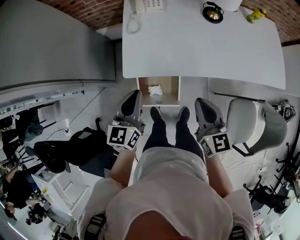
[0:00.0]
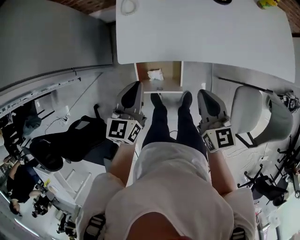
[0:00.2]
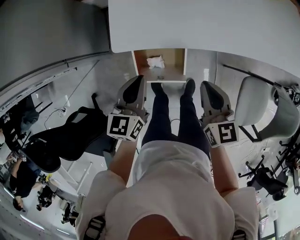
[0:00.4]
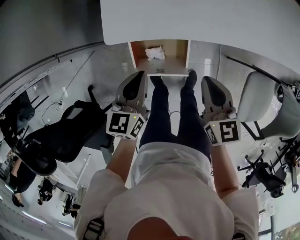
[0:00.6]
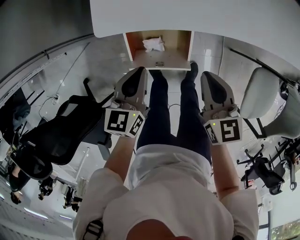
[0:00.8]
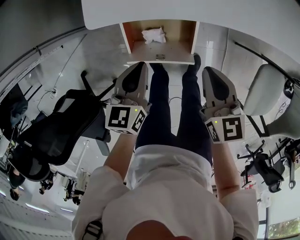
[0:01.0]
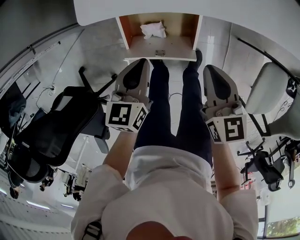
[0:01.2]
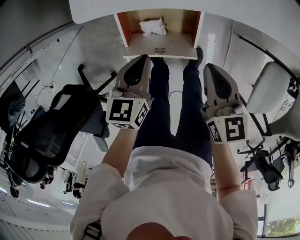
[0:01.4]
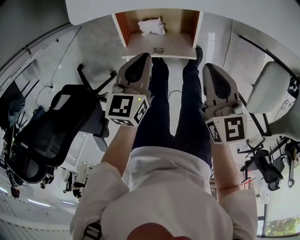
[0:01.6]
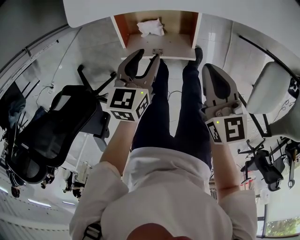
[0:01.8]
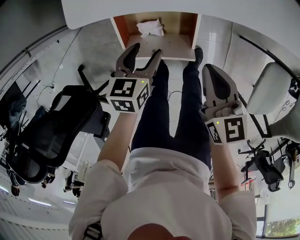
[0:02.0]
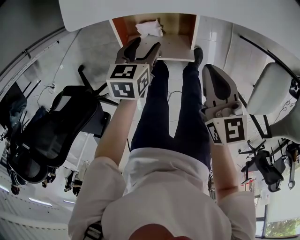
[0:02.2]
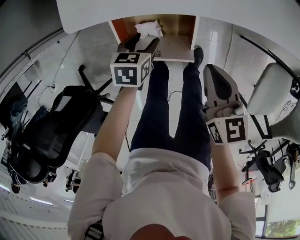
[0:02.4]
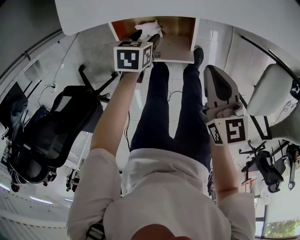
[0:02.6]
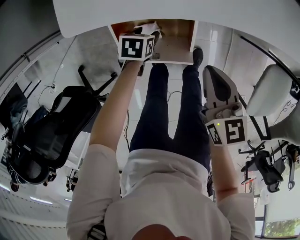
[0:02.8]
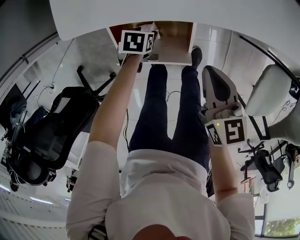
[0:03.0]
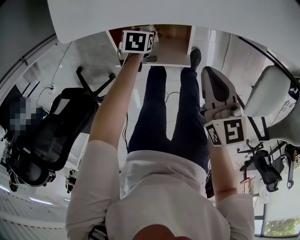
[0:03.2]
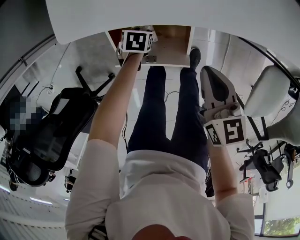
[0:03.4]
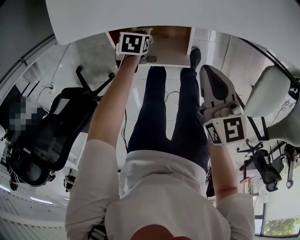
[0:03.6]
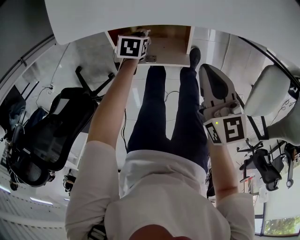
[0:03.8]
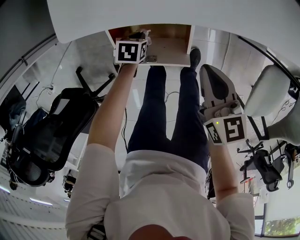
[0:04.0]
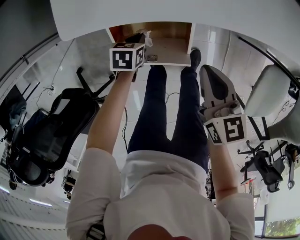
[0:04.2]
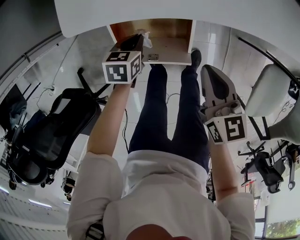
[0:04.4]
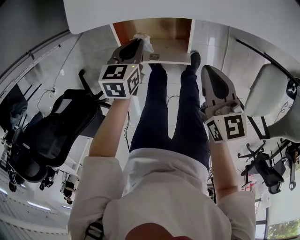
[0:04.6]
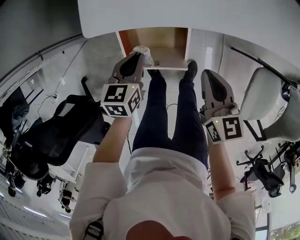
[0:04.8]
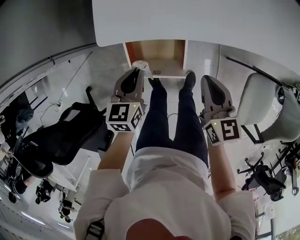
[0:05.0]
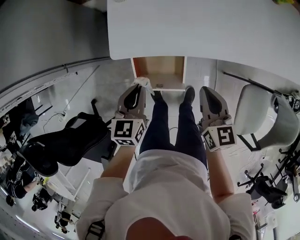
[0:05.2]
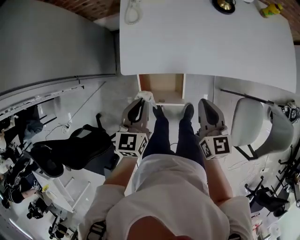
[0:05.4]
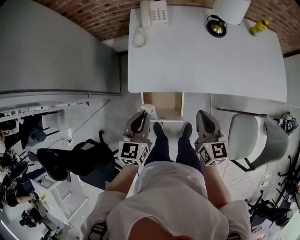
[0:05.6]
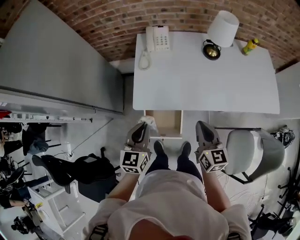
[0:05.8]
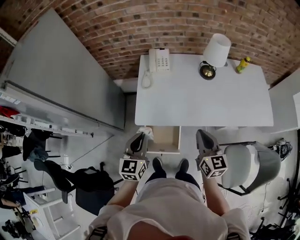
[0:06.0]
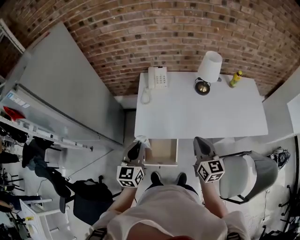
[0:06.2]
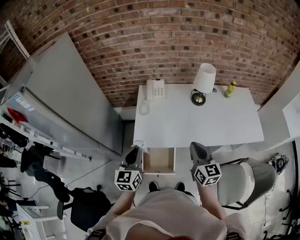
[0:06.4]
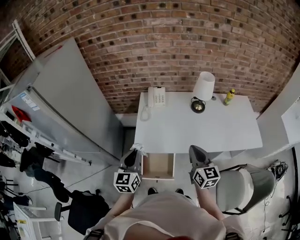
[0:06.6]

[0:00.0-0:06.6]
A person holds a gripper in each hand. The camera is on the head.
0:00.0 to 0:01.6: Both grippers move downward, some 30 cm. The left gripper rotates approximately 30 degrees.
0:01.6 to 0:03.2: The left gripper moves downward, roughly 25 cm, angles its fingers downward, by some 30 degrees, and opens its fingers.
0:03.2 to 0:05.0: The left gripper is displaced upward by roughly 30 cm, angles its fingers upward, by roughly 40 degrees, and closes; the right gripper travels upward by some 10 cm.
0:05.0 to 0:06.6: Both grippers travel together upward, approximately 35 cm. The right gripper swivels about 20 degrees. The left gripper angles its fingers upward, by roughly 30 degrees.

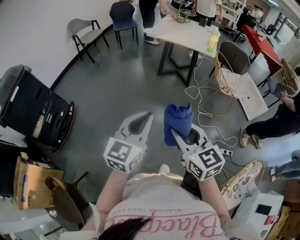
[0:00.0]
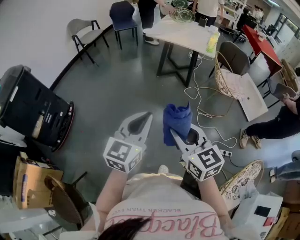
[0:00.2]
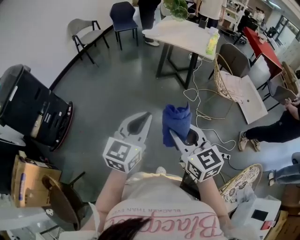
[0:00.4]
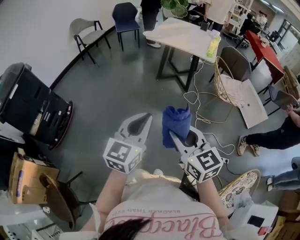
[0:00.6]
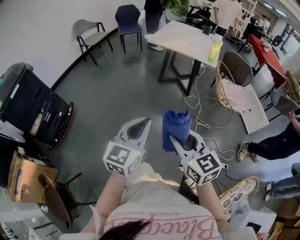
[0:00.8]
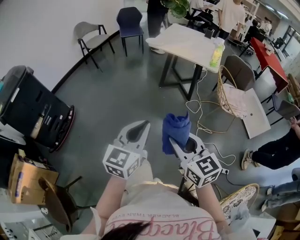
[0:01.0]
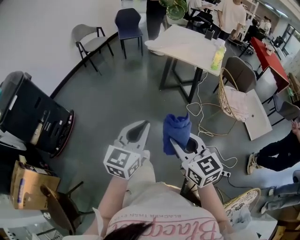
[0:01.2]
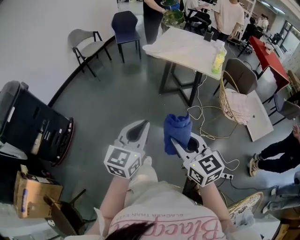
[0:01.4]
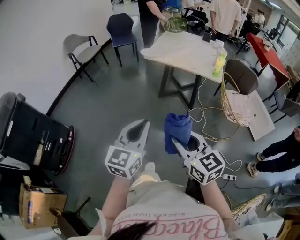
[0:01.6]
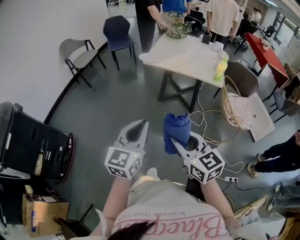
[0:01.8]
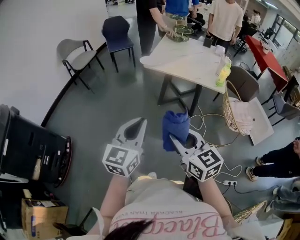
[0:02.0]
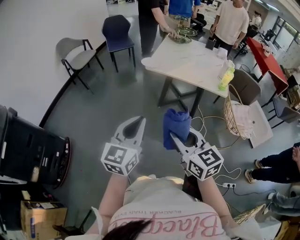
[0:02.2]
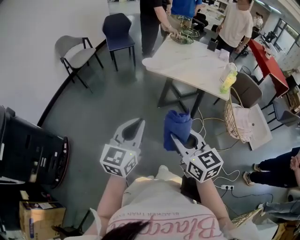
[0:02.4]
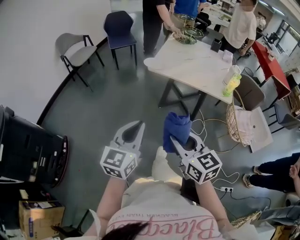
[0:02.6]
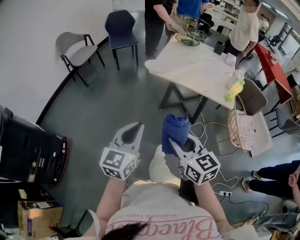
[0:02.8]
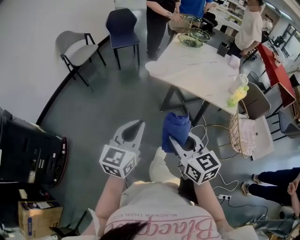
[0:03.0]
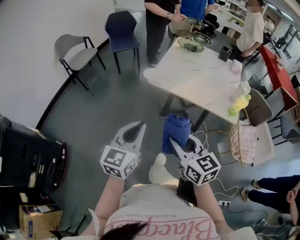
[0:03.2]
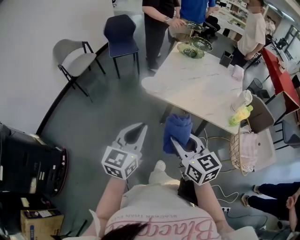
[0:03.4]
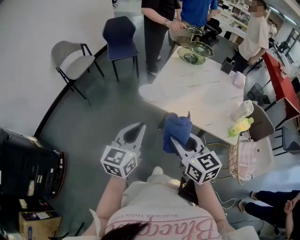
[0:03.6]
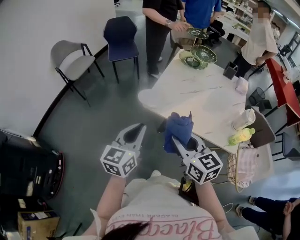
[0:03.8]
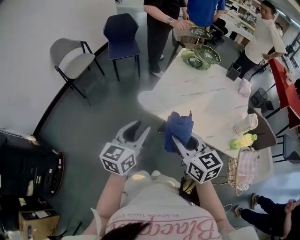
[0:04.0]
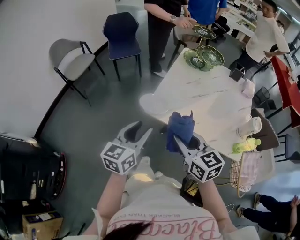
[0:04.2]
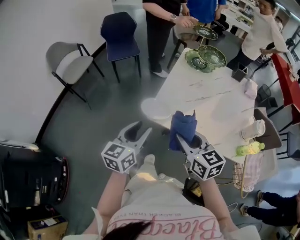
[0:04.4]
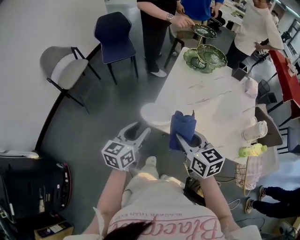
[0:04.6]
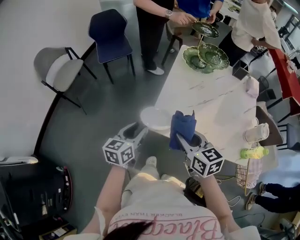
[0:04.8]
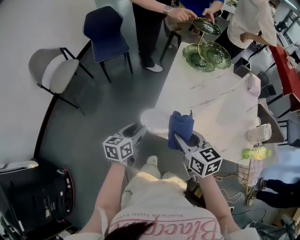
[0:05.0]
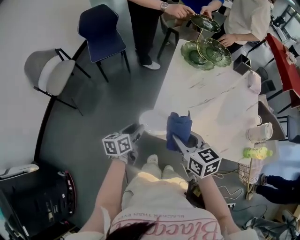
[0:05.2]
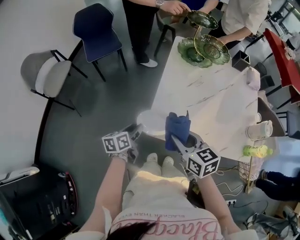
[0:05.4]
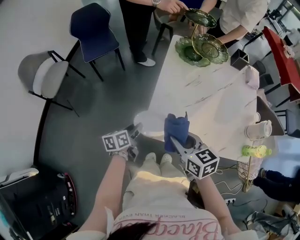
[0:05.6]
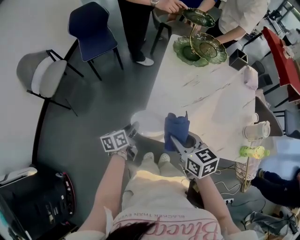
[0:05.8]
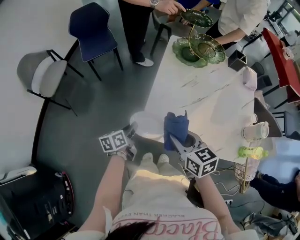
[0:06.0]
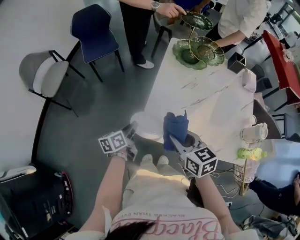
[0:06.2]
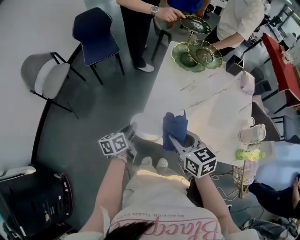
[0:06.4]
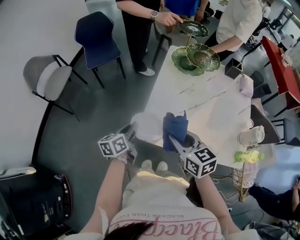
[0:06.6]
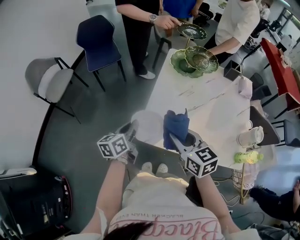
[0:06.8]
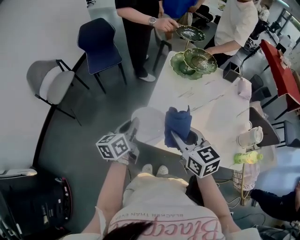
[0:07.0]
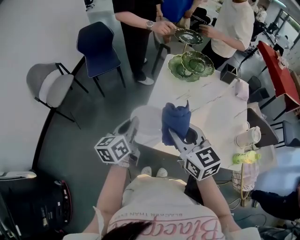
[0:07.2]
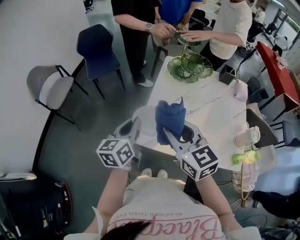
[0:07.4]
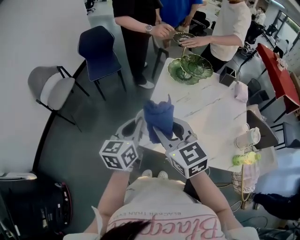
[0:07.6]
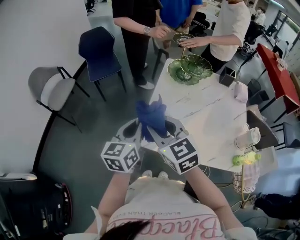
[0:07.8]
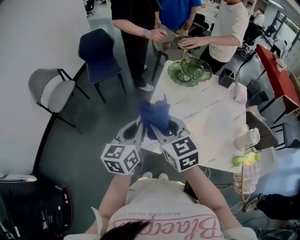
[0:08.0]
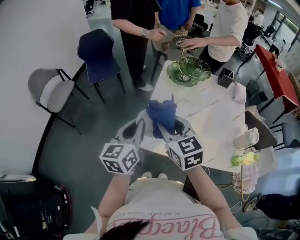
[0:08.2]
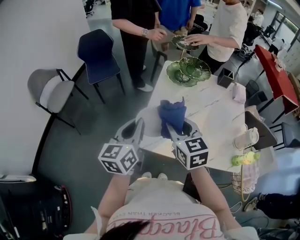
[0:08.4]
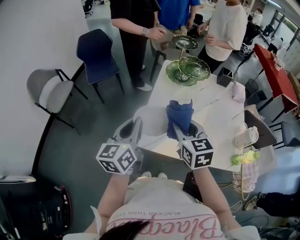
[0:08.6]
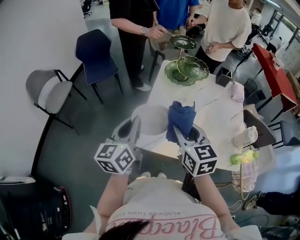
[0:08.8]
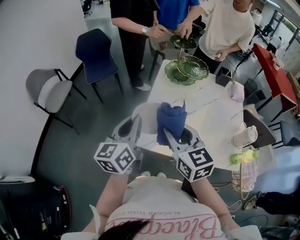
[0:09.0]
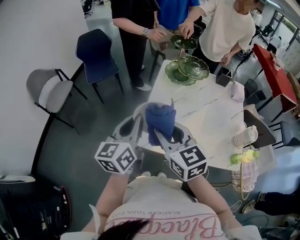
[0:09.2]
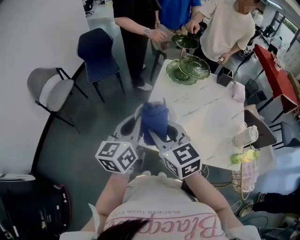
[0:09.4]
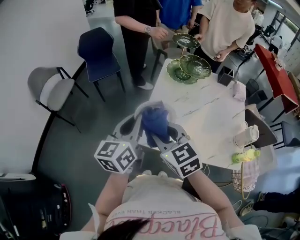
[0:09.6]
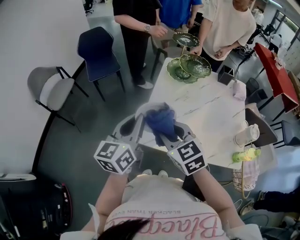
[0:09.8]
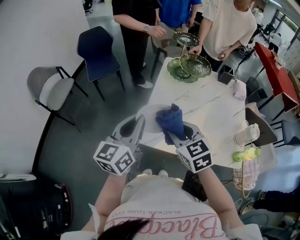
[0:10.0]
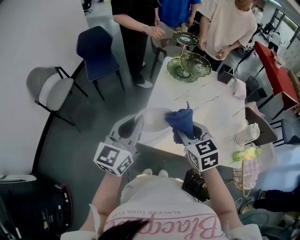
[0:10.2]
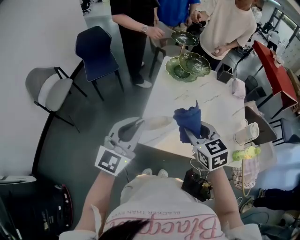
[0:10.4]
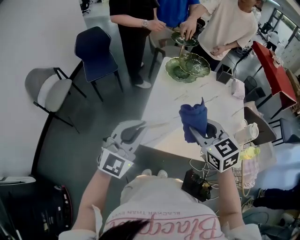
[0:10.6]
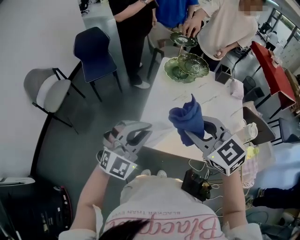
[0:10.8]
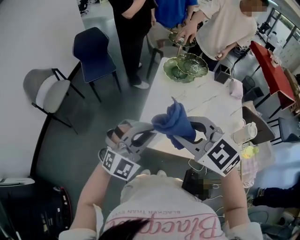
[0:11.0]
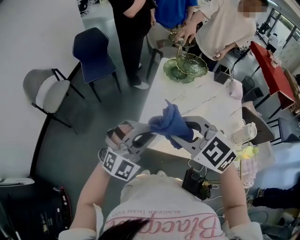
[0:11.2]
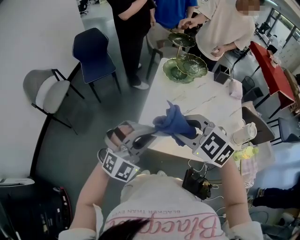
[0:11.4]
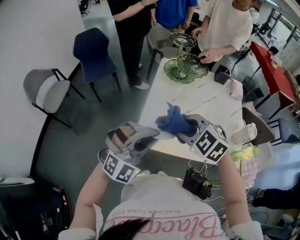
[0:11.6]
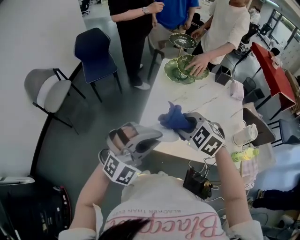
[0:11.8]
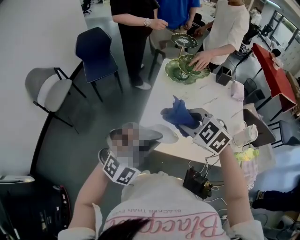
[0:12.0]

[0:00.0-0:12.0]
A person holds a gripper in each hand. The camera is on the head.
0:00.0 to 0:01.6: Both grippers travel together forward, roughly 25 cm.
0:01.6 to 0:03.0: Both grippers travel together forward, some 30 cm.
0:03.0 to 0:04.4: Both grippers move forward, roughly 35 cm. The left gripper opens its fingers.
0:04.4 to 0:06.0: The right gripper heads forward and downward, covering some 15 cm. The left gripper shifts about 25 cm downward and forward, turns by about 40 degrees, and closes its fingers.
0:06.0 to 0:07.6: The left gripper heads upward, covering roughly 25 cm, and swivels roughly 30 degrees; the right gripper moves upward, roughly 15 cm, and swivels approximately 30 degrees.
0:09.0 to 0:10.4: The right gripper shifts roughly 10 cm to the right and downward, while the left gripper turns by about 40 degrees.
0:10.4 to 0:12.0: The right gripper reaches roughly 10 cm upward, then returns, and rotates approximately 40 degrees; the left gripper heads to the right, covering approximately 5 cm, and rolls clockwise, seen from behind, by some 50 degrees.

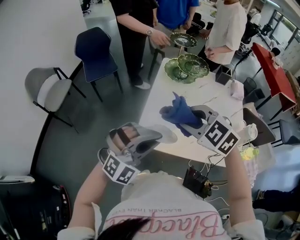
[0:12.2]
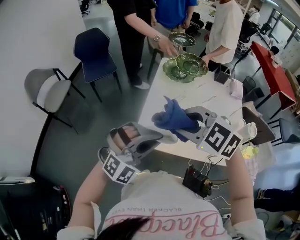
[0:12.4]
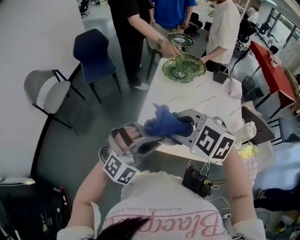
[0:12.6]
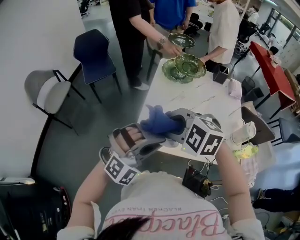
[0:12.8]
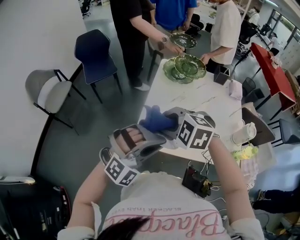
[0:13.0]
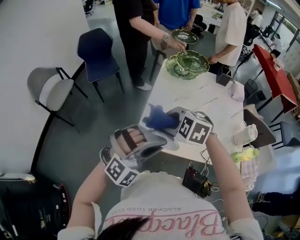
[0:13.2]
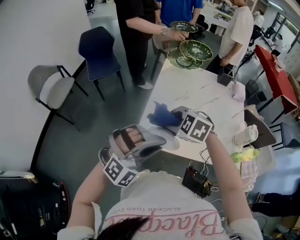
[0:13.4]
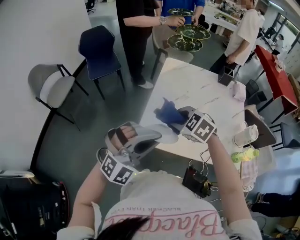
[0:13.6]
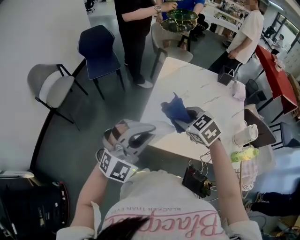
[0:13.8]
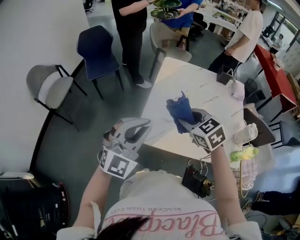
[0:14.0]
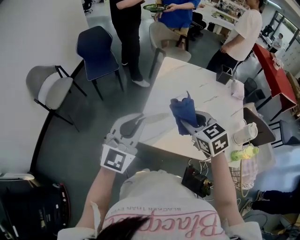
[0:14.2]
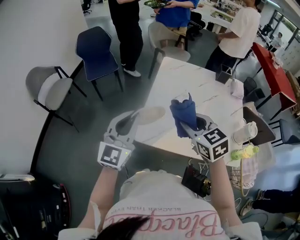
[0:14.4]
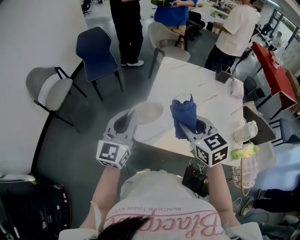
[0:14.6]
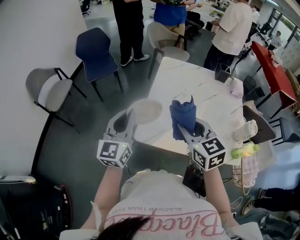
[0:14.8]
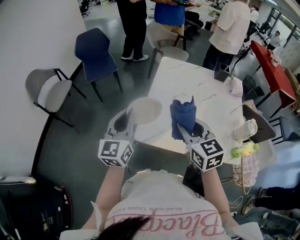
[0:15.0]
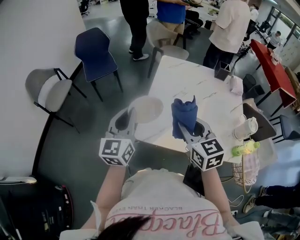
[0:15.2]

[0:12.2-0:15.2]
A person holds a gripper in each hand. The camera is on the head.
0:12.2 to 0:13.8: The right gripper travels downward by approximately 10 cm.
0:13.8 to 0:15.2: The left gripper goes about 10 cm forward and to the left, and twists about 60 degrees counterclockwise, seen from behind; the right gripper shifts roughly 10 cm upward and backward, and turns by about 40 degrees.

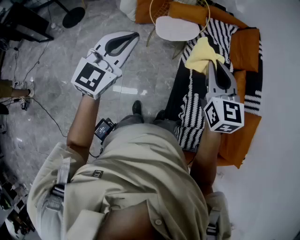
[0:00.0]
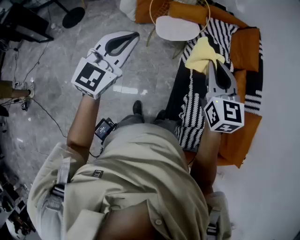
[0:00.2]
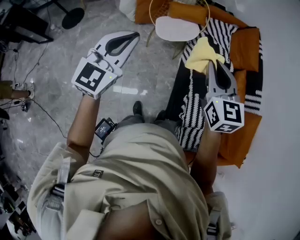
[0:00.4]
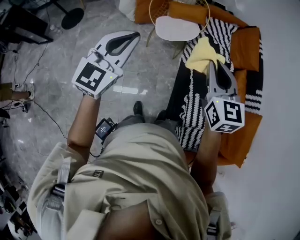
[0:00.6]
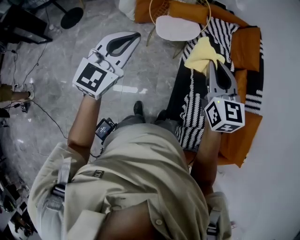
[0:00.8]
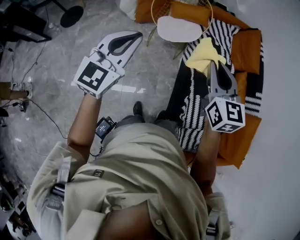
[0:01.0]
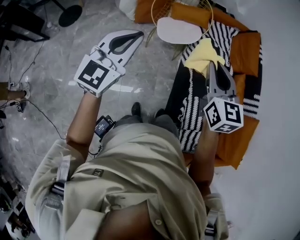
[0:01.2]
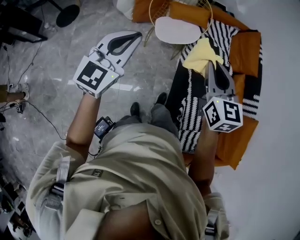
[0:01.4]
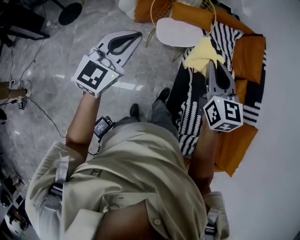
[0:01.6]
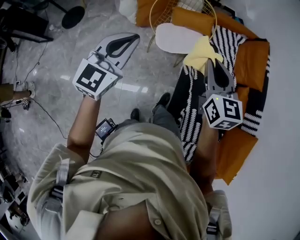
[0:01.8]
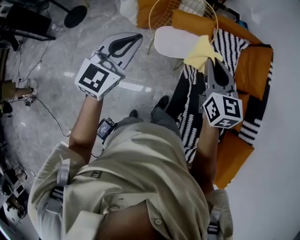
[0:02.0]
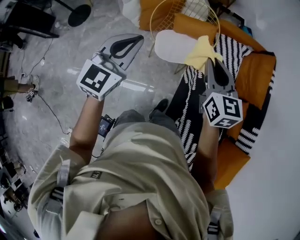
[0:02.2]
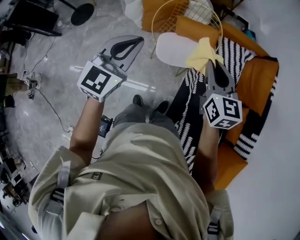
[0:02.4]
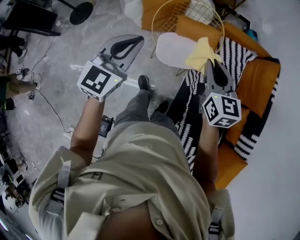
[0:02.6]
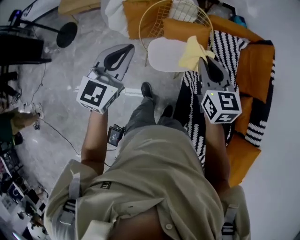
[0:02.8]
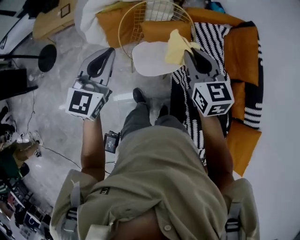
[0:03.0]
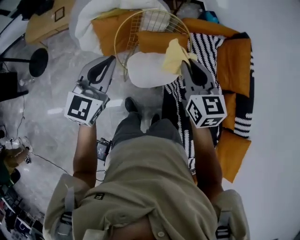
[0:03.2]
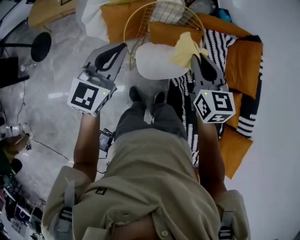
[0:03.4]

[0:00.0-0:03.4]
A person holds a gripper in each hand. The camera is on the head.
0:00.0 to 0:01.6: Both grippers travel together forward, some 15 cm.
0:01.6 to 0:03.4: The two grippers travel together, forward, some 40 cm.
